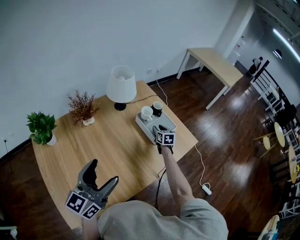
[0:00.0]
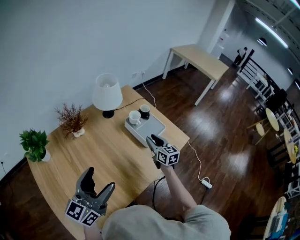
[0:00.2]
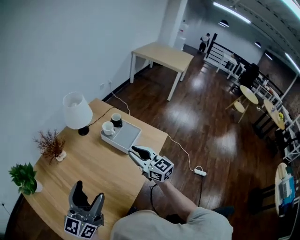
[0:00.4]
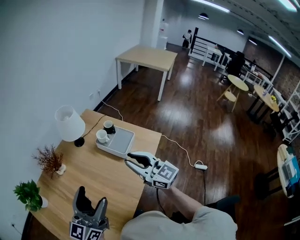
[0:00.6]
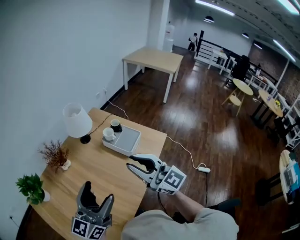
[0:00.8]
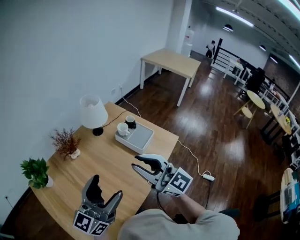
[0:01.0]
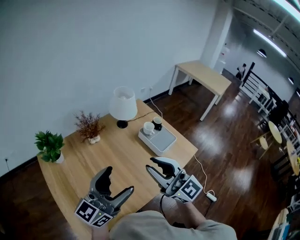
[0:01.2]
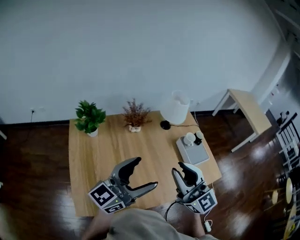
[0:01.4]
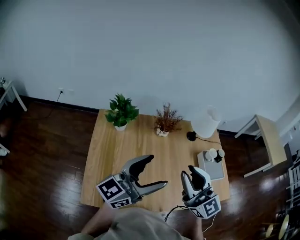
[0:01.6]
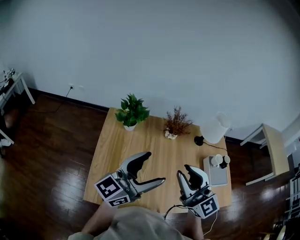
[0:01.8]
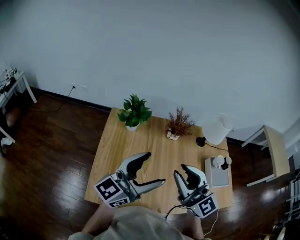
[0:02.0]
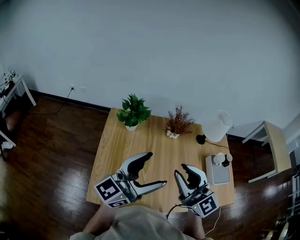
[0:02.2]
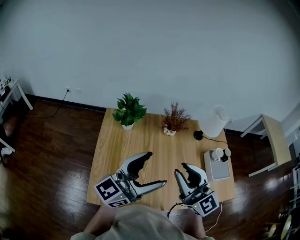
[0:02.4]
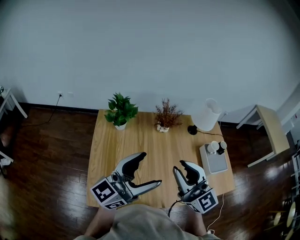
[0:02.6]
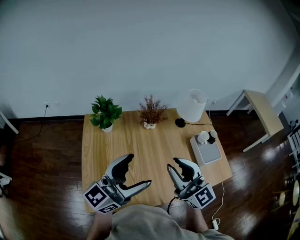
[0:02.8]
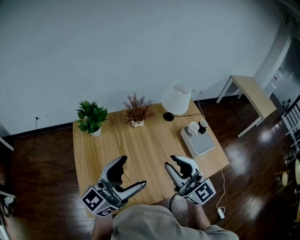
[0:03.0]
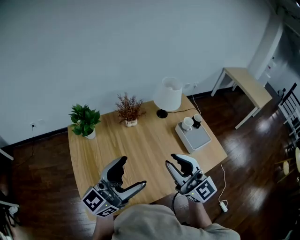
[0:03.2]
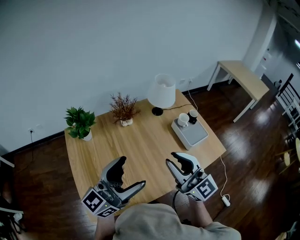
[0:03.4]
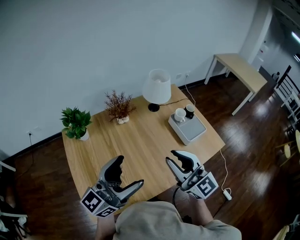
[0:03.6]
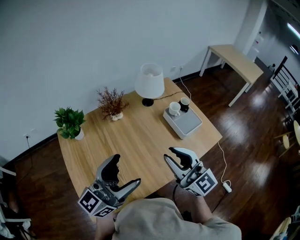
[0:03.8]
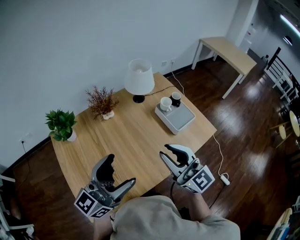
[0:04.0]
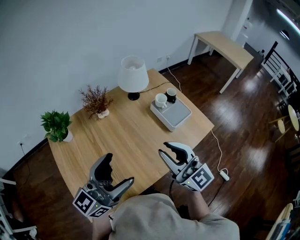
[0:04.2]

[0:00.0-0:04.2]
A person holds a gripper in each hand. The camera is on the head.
0:00.0 to 0:01.4: The right gripper heads upward, backward and to the left, covering some 60 cm, and angles its fingers upward, by roughly 50 degrees; the left gripper travels upward and to the left by approximately 10 cm.
0:01.4 to 0:02.8: The grippers both shift to the left by some 5 cm.
0:02.8 to 0:04.2: The two grippers go about 15 cm to the right.

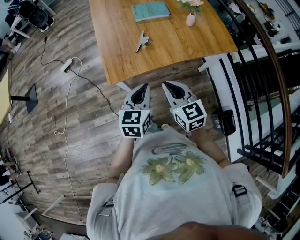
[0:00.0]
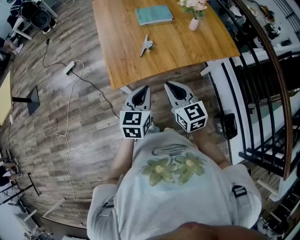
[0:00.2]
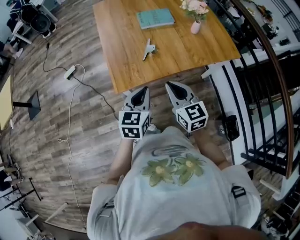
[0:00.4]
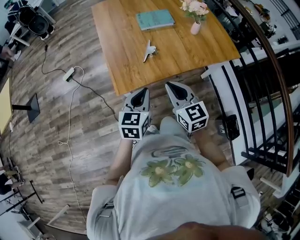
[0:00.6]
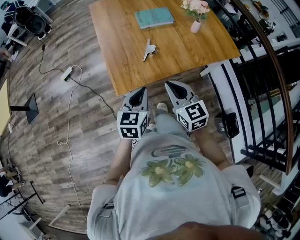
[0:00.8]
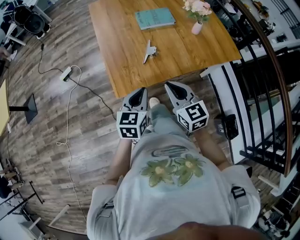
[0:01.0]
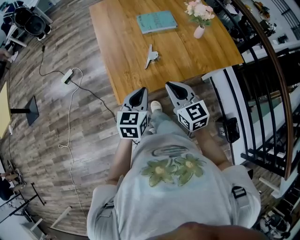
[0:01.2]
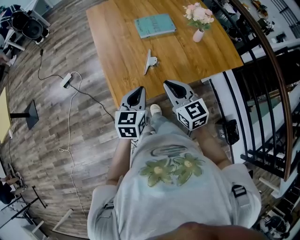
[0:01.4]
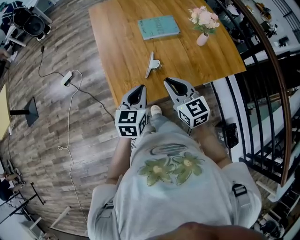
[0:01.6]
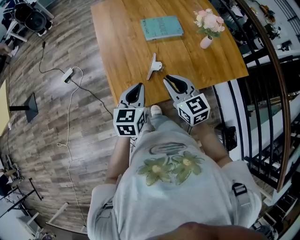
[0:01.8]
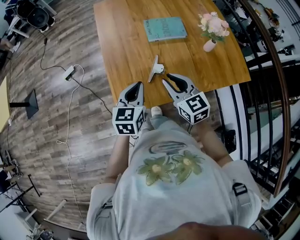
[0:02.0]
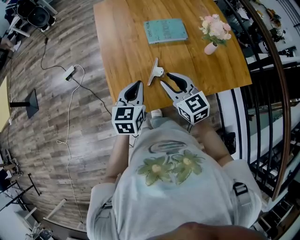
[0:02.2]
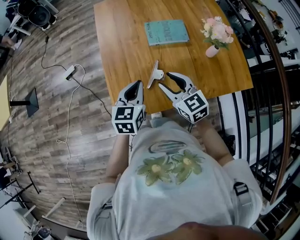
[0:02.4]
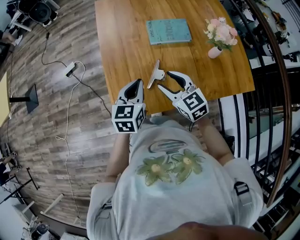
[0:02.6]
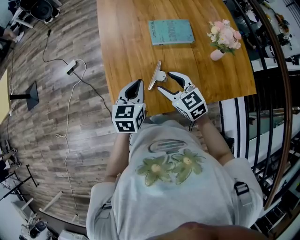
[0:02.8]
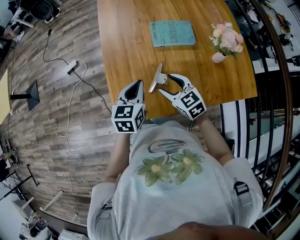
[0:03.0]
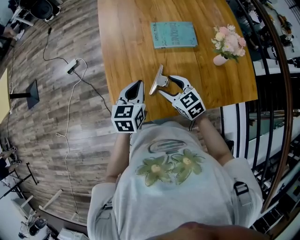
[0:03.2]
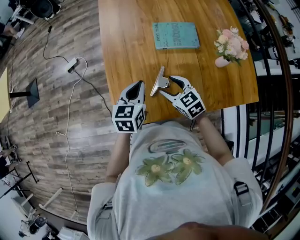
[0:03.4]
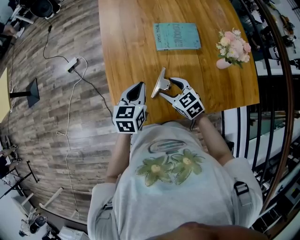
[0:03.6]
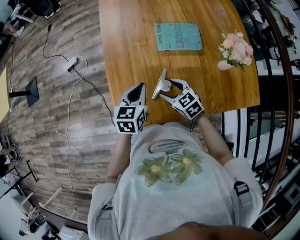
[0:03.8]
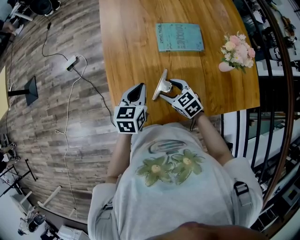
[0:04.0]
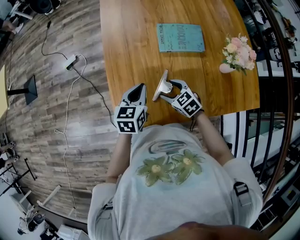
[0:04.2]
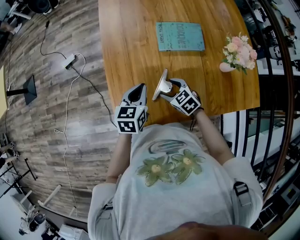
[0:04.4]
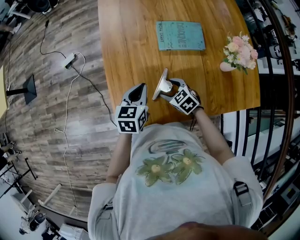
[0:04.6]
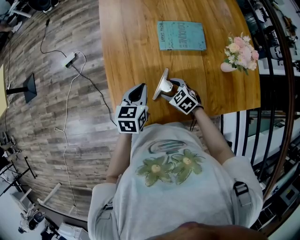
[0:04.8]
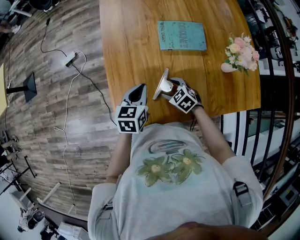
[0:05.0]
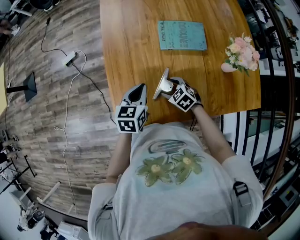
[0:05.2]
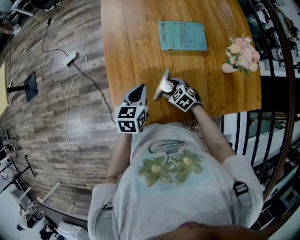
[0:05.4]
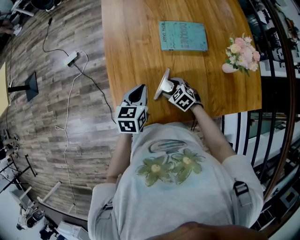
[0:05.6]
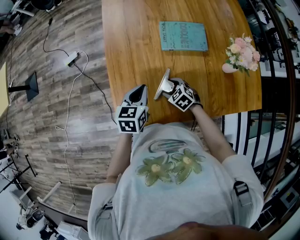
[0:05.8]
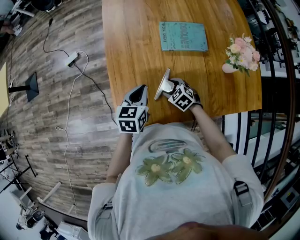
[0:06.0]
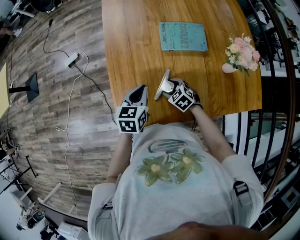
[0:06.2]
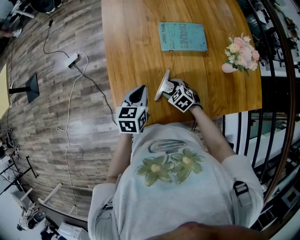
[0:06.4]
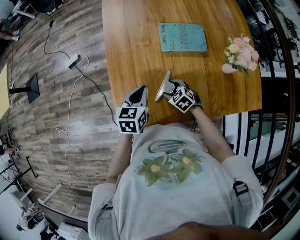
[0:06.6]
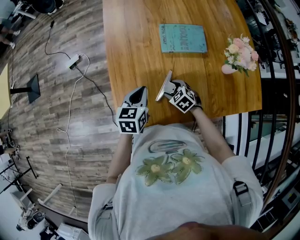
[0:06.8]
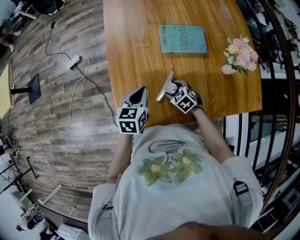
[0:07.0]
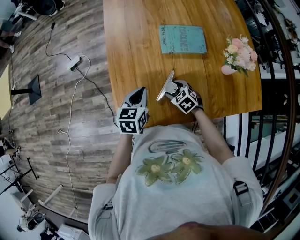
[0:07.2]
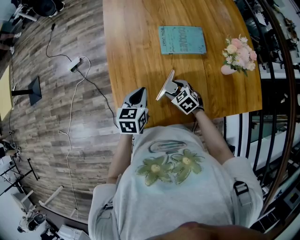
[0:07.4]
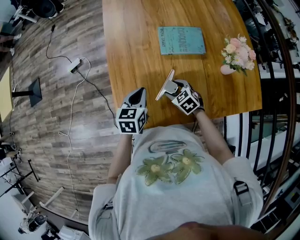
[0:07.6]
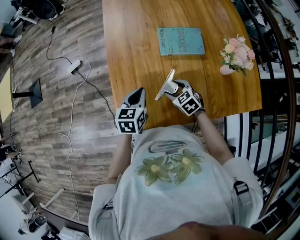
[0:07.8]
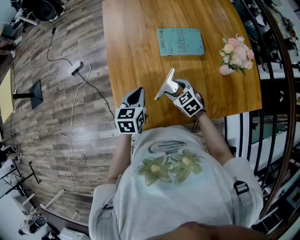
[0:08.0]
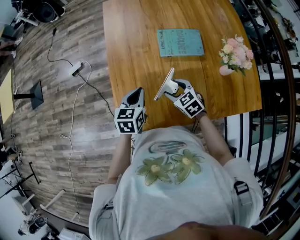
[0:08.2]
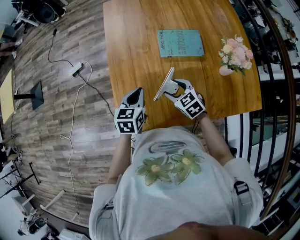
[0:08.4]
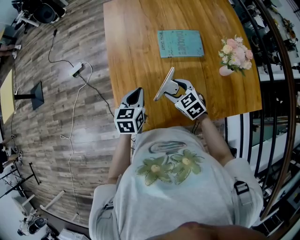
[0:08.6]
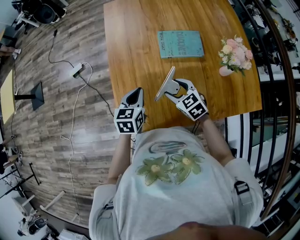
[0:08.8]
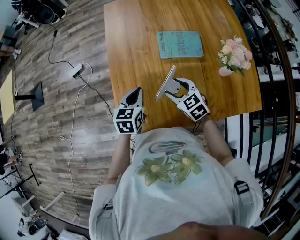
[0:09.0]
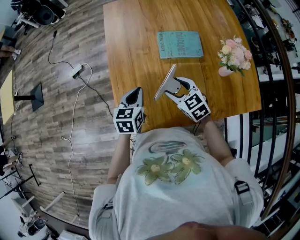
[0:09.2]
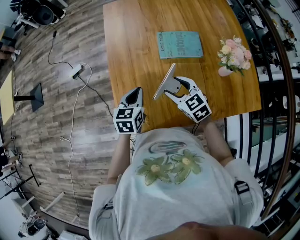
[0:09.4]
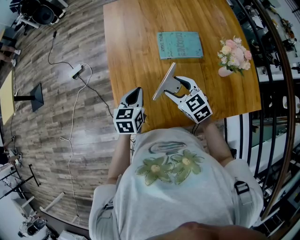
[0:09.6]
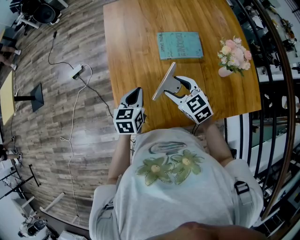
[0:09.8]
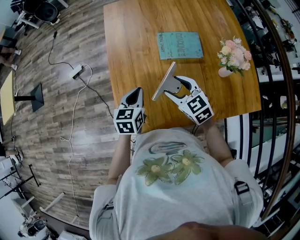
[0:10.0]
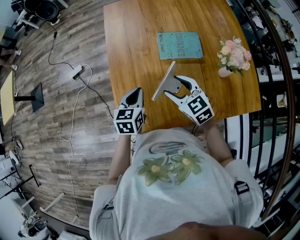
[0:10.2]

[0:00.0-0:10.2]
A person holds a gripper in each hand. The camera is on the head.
0:00.0 to 0:01.4: The right gripper goes some 15 cm forward; the left gripper shifts about 15 cm forward and to the left.
0:01.4 to 0:03.0: The left gripper moves forward, about 15 cm. Meanwhile the right gripper is displaced forward and downward by about 20 cm, swivels roughly 30 degrees, and opens.
0:03.0 to 0:04.4: The left gripper goes about 5 cm downward; the right gripper moves downward, roughly 10 cm.
0:04.4 to 0:05.8: The right gripper is displaced downward by approximately 5 cm.
0:05.8 to 0:07.2: There are only small adjustments of the grippers.
0:07.2 to 0:08.8: The right gripper heads upward, covering roughly 10 cm.
0:08.8 to 0:10.2: The right gripper shifts approximately 10 cm upward.

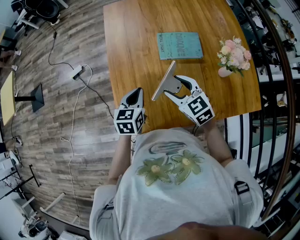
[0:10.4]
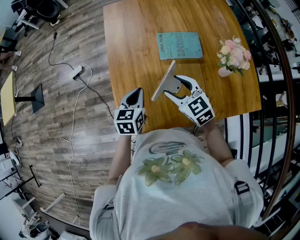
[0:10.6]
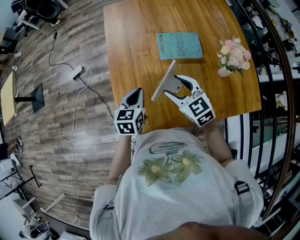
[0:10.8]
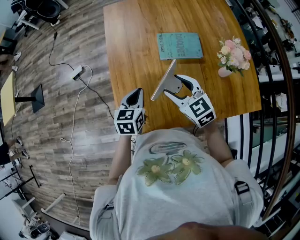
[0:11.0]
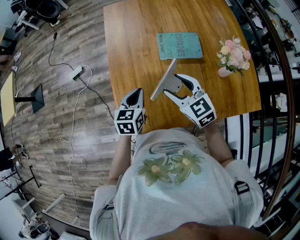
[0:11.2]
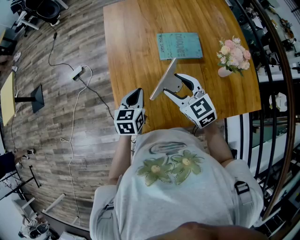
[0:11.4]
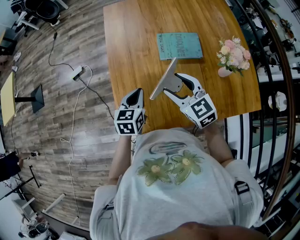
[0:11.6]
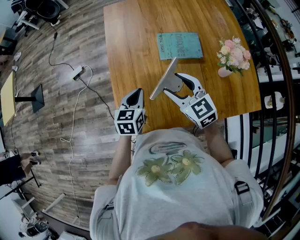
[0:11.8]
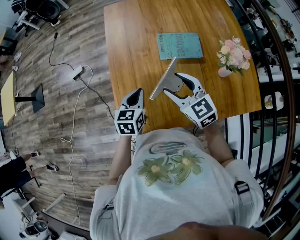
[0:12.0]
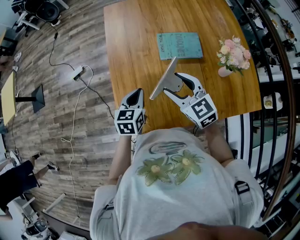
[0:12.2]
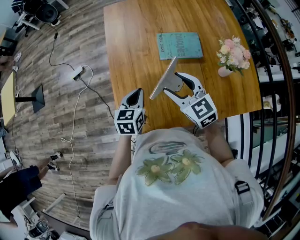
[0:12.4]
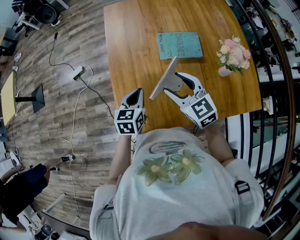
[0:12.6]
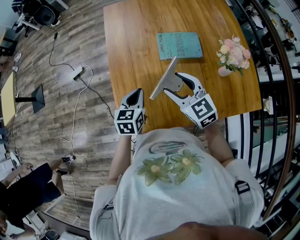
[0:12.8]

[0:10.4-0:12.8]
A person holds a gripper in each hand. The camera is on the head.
0:10.4 to 0:11.6: The grippers make only small movements.
0:11.6 to 0:12.8: Neither gripper changes place.

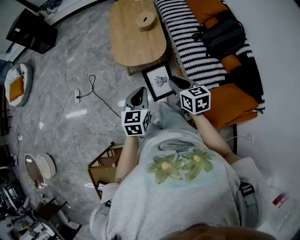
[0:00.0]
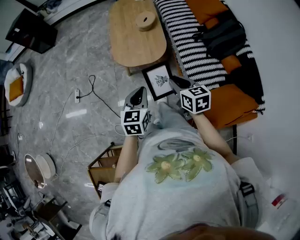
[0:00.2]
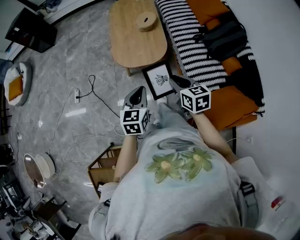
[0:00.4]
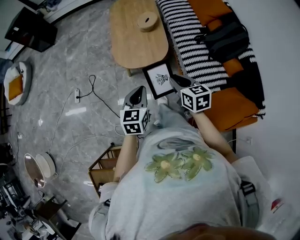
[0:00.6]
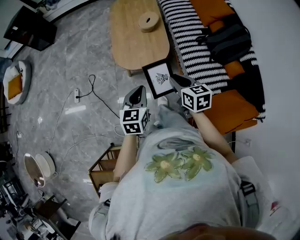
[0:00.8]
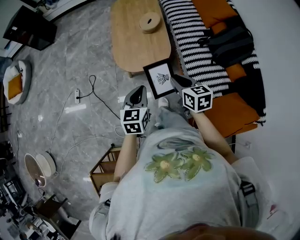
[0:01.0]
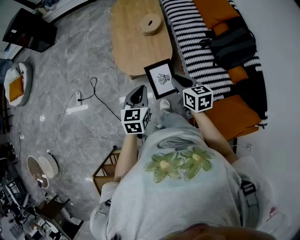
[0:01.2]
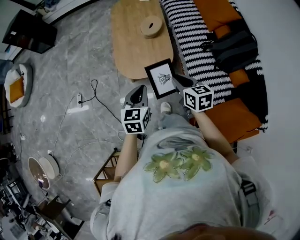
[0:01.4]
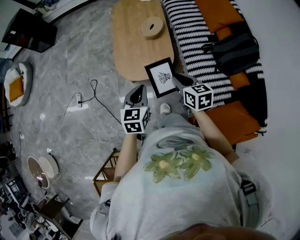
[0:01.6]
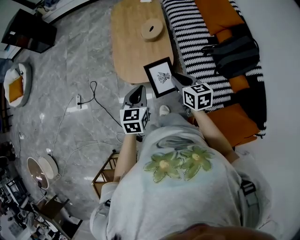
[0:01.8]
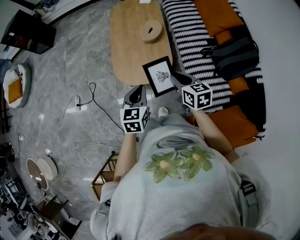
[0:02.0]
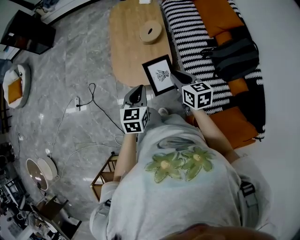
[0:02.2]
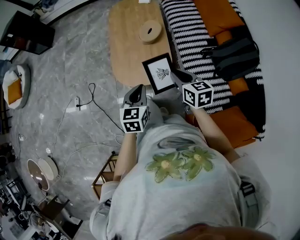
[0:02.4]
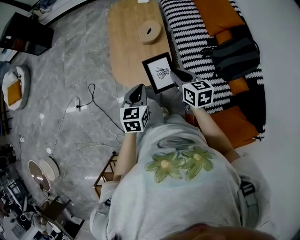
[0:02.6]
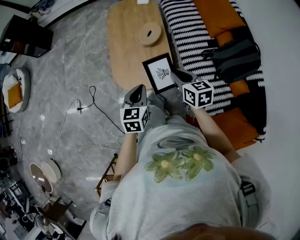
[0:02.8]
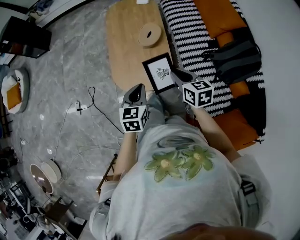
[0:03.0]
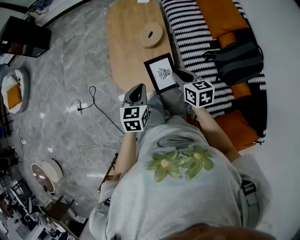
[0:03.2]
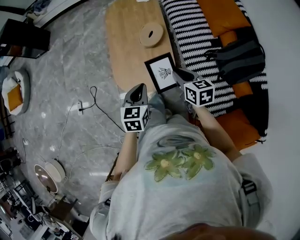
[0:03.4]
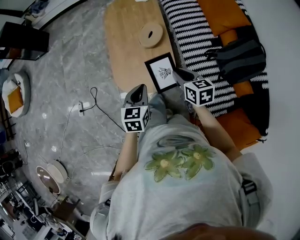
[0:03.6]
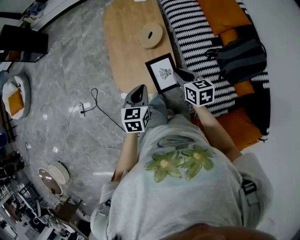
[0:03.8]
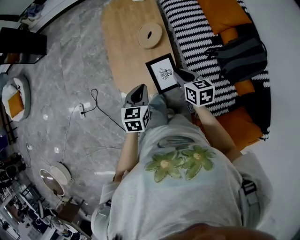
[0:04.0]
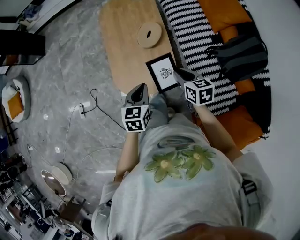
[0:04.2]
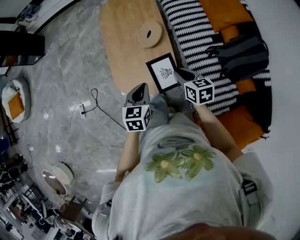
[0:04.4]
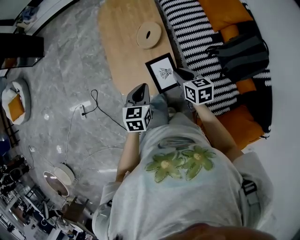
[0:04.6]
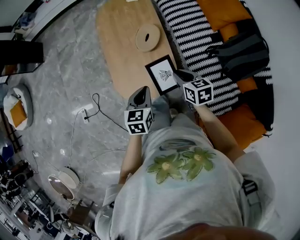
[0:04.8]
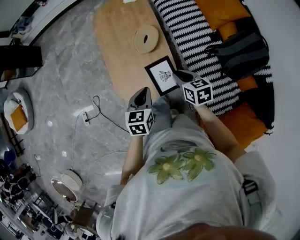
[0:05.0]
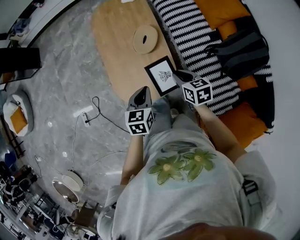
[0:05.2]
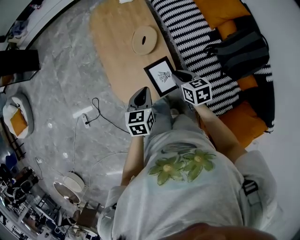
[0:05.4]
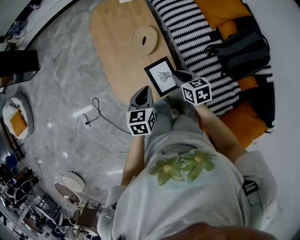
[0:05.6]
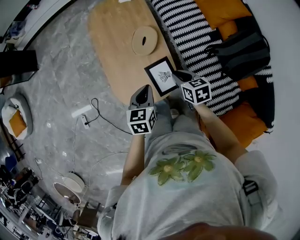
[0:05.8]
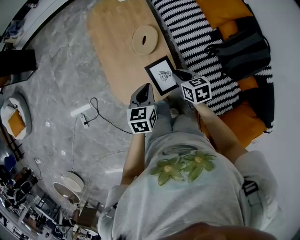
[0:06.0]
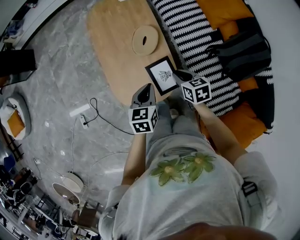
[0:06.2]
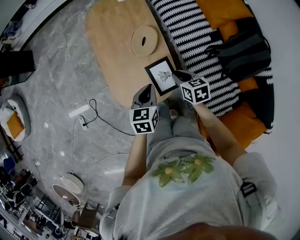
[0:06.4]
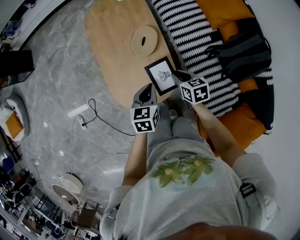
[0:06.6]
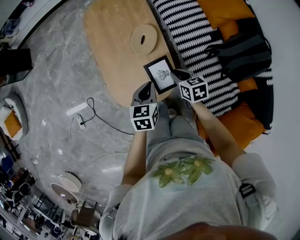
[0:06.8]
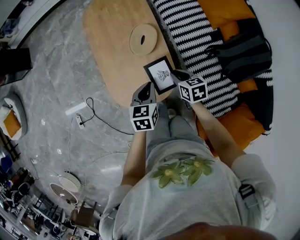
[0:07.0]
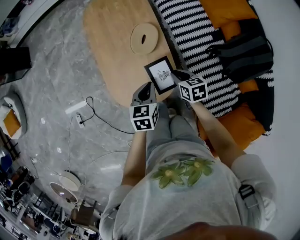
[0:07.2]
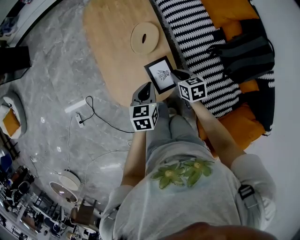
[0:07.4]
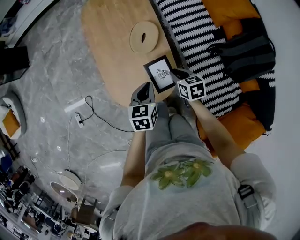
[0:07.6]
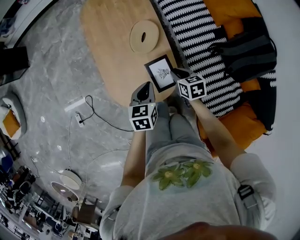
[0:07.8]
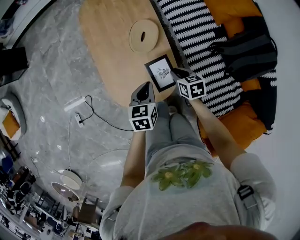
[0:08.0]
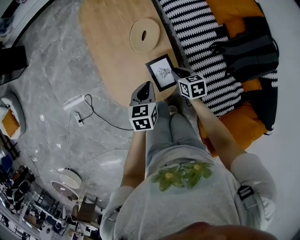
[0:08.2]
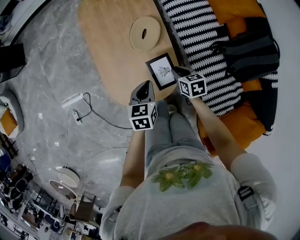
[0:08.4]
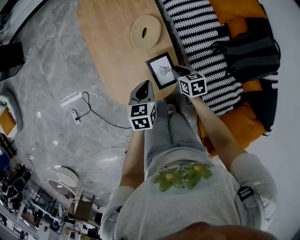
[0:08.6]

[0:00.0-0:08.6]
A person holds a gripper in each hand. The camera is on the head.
0:00.0 to 0:01.4: Both grippers travel together forward, roughly 15 cm.
0:01.4 to 0:02.8: The two grippers go approximately 10 cm forward.
0:02.8 to 0:04.4: The right gripper goes roughly 10 cm forward and downward. Meanwhile the left gripper heads forward, covering some 10 cm.
0:04.4 to 0:05.8: The left gripper travels forward by approximately 5 cm; the right gripper shifts some 10 cm downward and forward.
0:05.8 to 0:07.2: The right gripper shifts about 5 cm downward. The left gripper moves roughly 5 cm.
0:07.2 to 0:08.6: The two grippers go about 5 cm downward.
